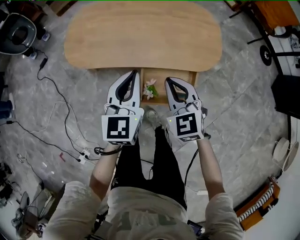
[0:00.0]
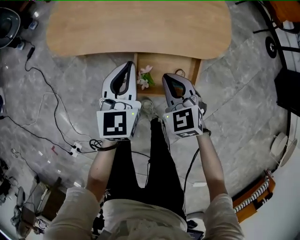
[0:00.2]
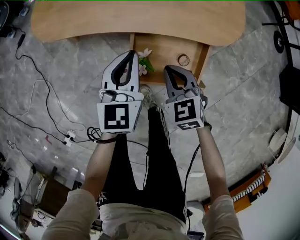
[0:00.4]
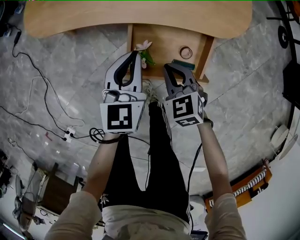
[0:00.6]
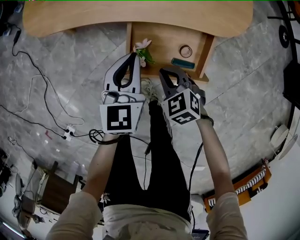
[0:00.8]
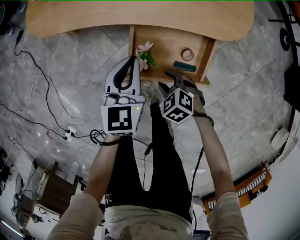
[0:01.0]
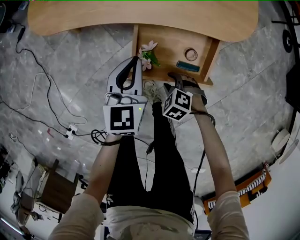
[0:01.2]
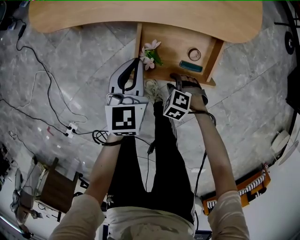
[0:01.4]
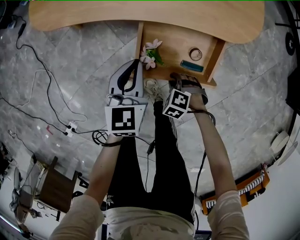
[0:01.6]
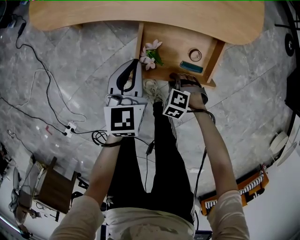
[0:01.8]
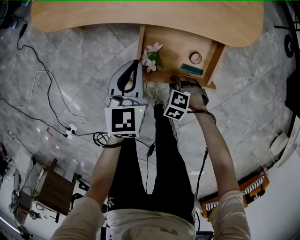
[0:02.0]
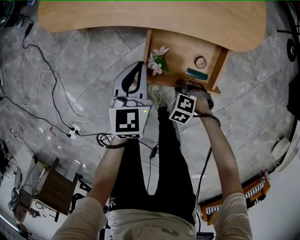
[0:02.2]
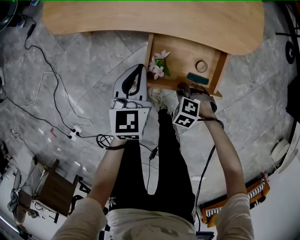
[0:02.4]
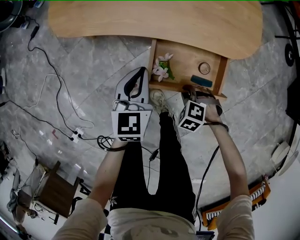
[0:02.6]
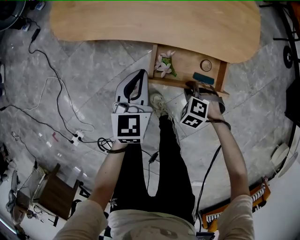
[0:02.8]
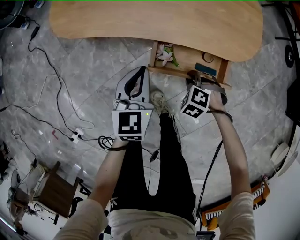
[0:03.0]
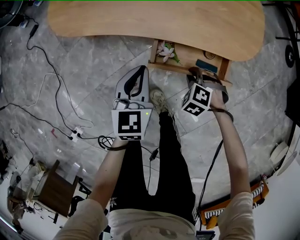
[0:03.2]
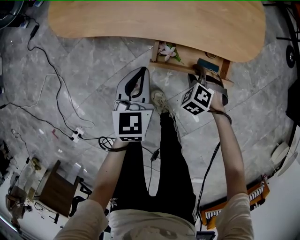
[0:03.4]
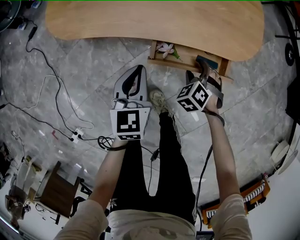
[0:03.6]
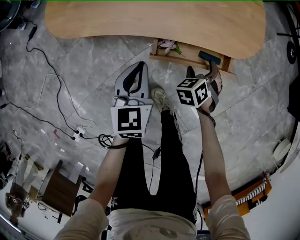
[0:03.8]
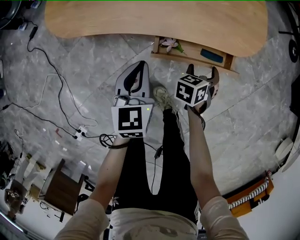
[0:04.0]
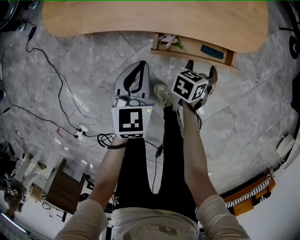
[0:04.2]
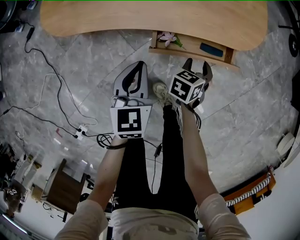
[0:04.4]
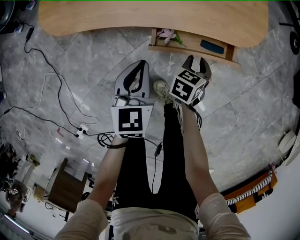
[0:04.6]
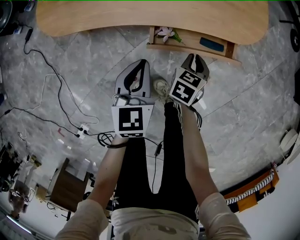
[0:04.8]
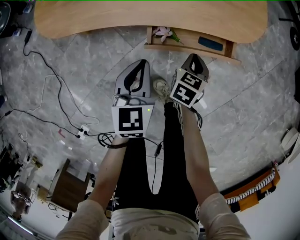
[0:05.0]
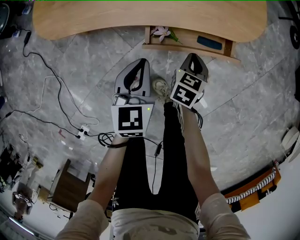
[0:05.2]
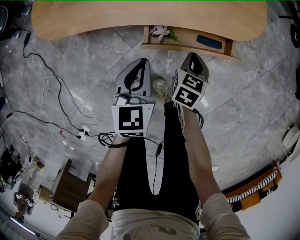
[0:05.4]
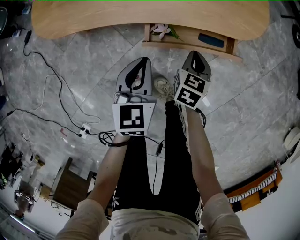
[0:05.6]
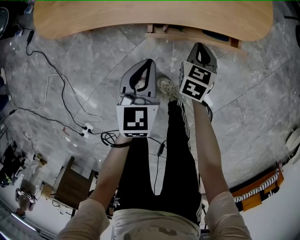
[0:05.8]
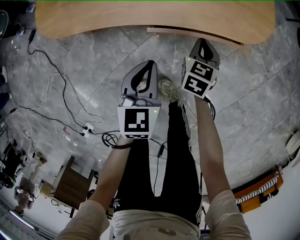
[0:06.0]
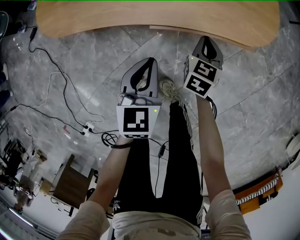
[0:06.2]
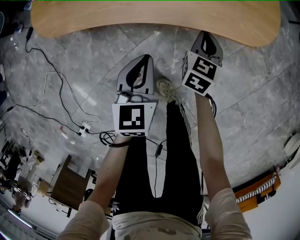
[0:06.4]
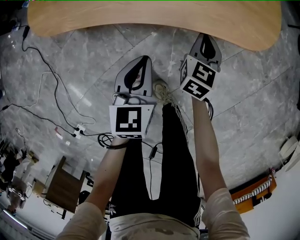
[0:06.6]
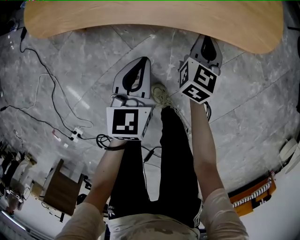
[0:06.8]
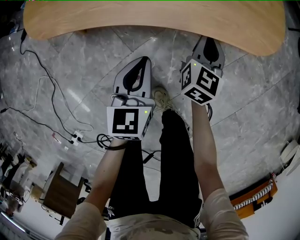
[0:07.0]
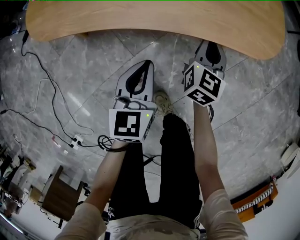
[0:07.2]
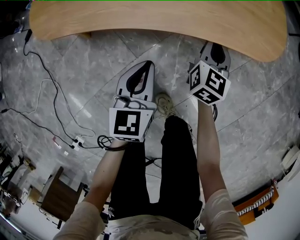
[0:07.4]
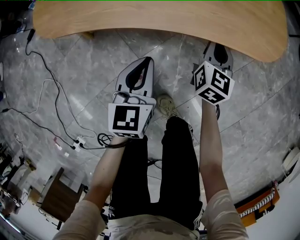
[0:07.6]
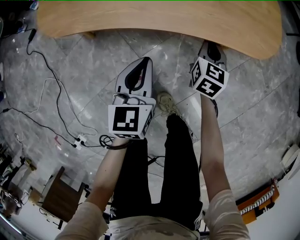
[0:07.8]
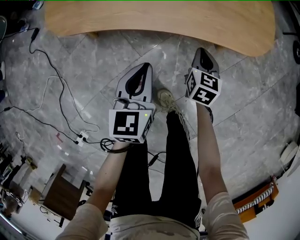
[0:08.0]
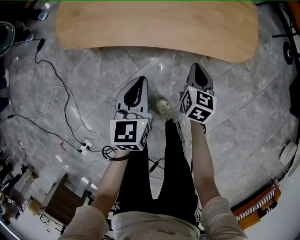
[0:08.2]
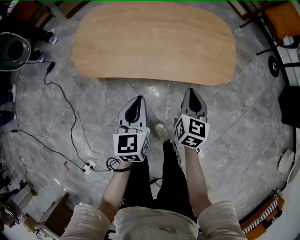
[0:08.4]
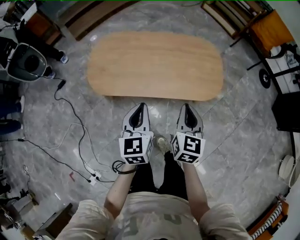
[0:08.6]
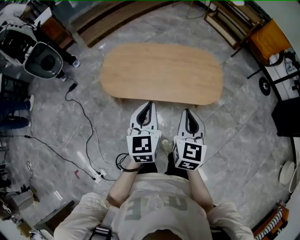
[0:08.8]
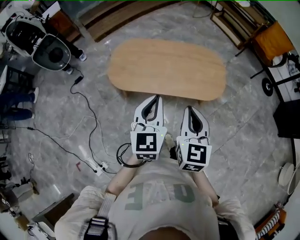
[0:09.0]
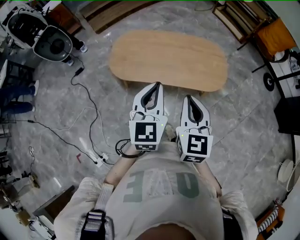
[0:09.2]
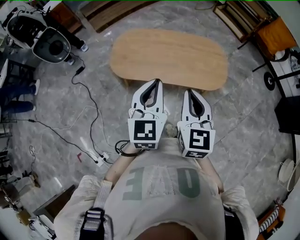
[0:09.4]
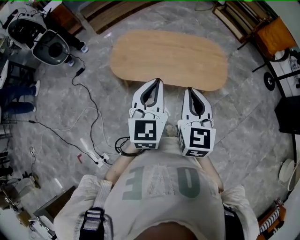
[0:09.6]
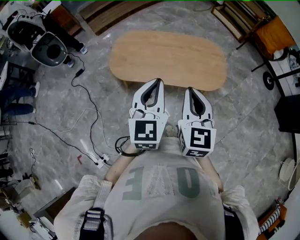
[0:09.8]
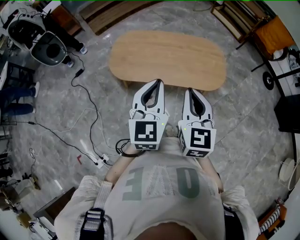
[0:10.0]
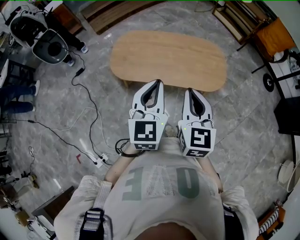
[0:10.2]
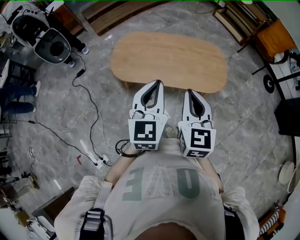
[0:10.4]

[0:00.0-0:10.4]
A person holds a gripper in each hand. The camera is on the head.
0:00.0 to 0:01.4: The left gripper is displaced downward by roughly 25 cm. Meanwhile the right gripper shifts approximately 40 cm downward, tilts its fingers some 50 degrees downward, and opens.
0:01.4 to 0:03.0: The right gripper changes place by approximately 10 cm. Meanwhile the left gripper shifts by some 5 cm.
0:03.0 to 0:04.4: The right gripper moves roughly 5 cm, rotates around the line of its fingers by some 80 degrees, clockwise from behind, and opens its fingers.
0:04.4 to 0:06.0: The right gripper heads forward, covering roughly 5 cm, changes its angle by approximately 20 degrees, and closes.
0:06.0 to 0:07.4: The left gripper moves downward, about 5 cm; the right gripper shifts roughly 5 cm forward, and swivels approximately 20 degrees.
0:07.4 to 0:09.0: Both grippers travel together upward, about 50 cm.
0:09.0 to 0:10.4: There are only small adjustments of the grippers.

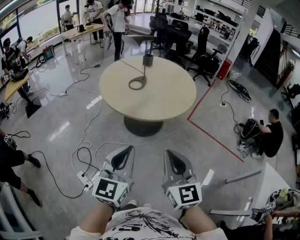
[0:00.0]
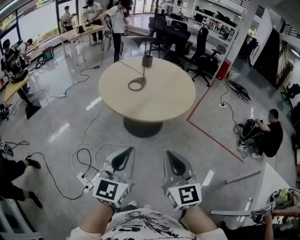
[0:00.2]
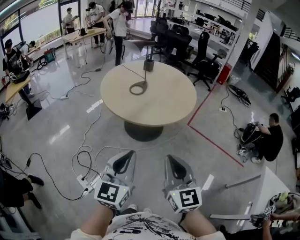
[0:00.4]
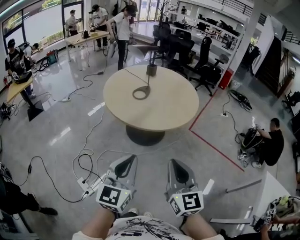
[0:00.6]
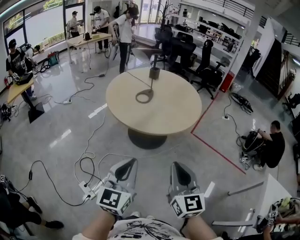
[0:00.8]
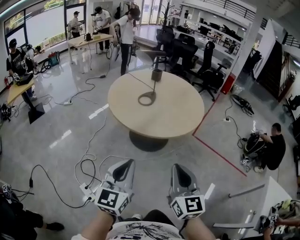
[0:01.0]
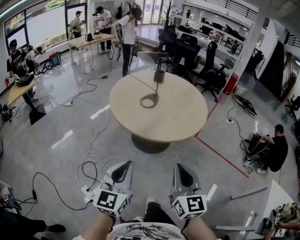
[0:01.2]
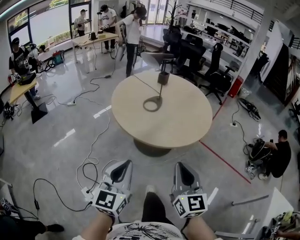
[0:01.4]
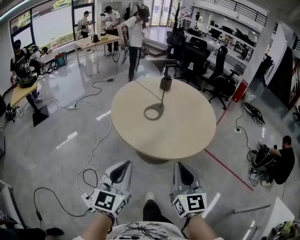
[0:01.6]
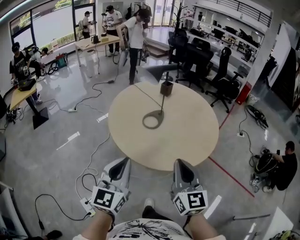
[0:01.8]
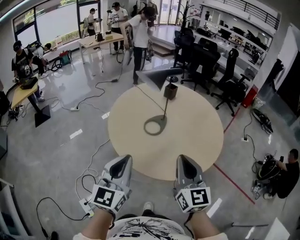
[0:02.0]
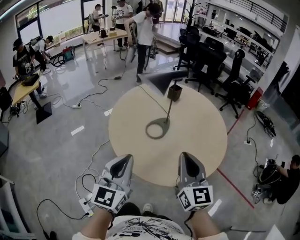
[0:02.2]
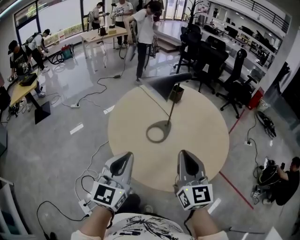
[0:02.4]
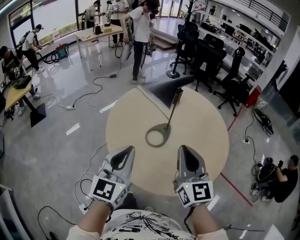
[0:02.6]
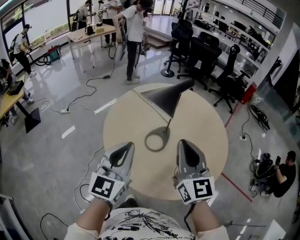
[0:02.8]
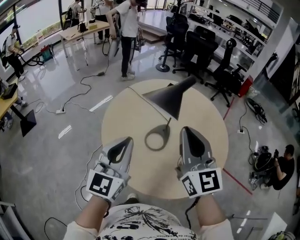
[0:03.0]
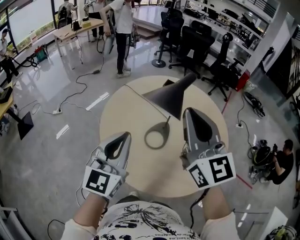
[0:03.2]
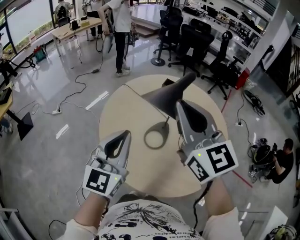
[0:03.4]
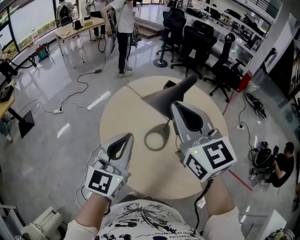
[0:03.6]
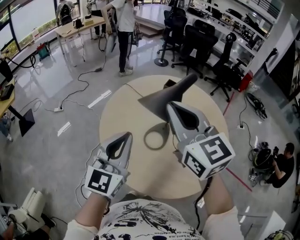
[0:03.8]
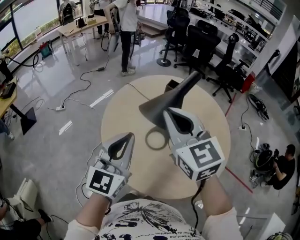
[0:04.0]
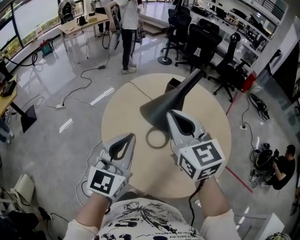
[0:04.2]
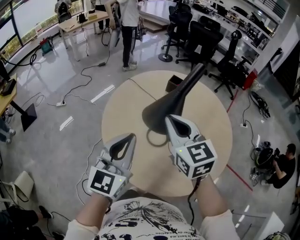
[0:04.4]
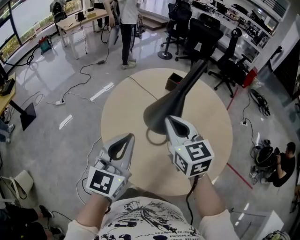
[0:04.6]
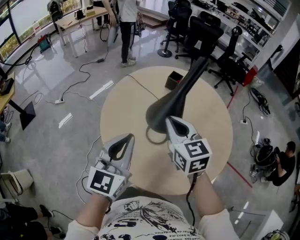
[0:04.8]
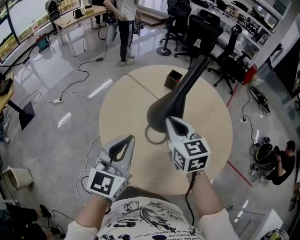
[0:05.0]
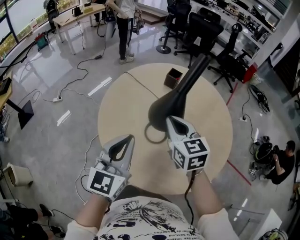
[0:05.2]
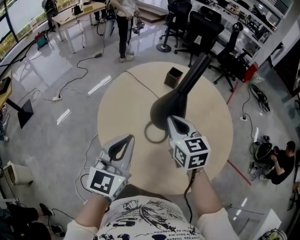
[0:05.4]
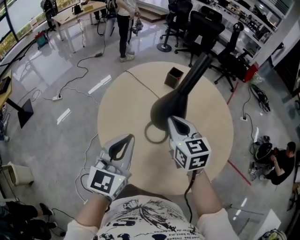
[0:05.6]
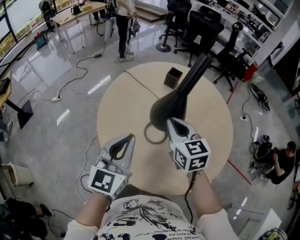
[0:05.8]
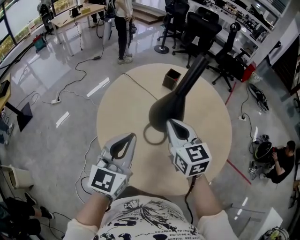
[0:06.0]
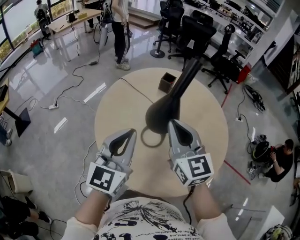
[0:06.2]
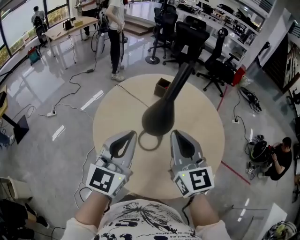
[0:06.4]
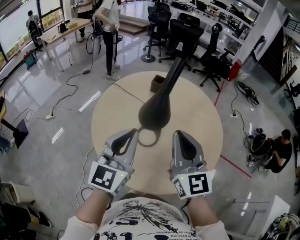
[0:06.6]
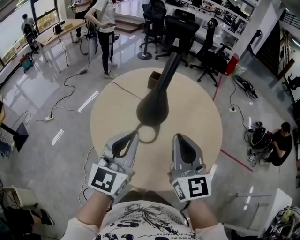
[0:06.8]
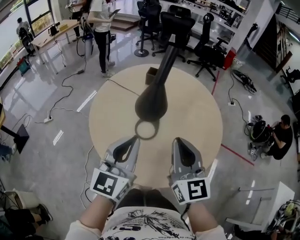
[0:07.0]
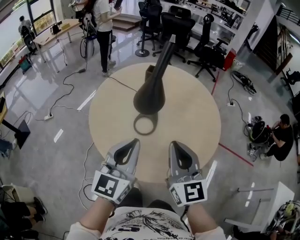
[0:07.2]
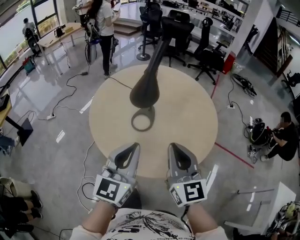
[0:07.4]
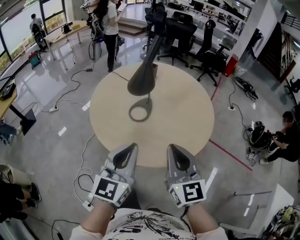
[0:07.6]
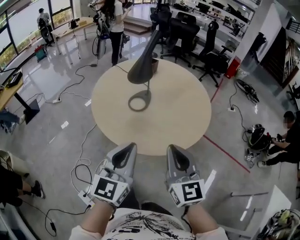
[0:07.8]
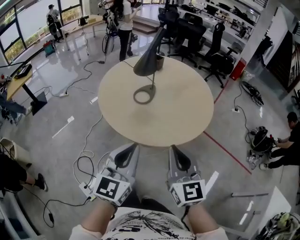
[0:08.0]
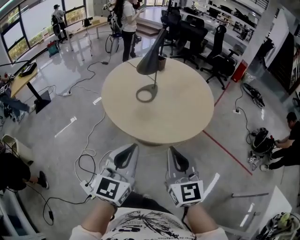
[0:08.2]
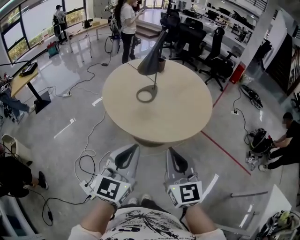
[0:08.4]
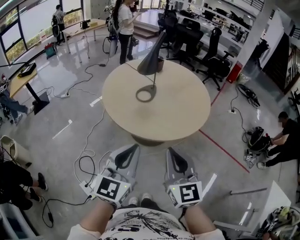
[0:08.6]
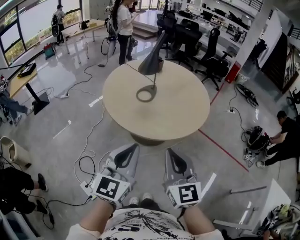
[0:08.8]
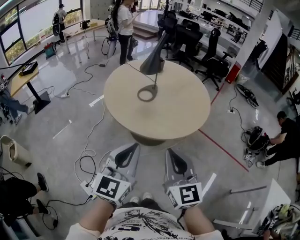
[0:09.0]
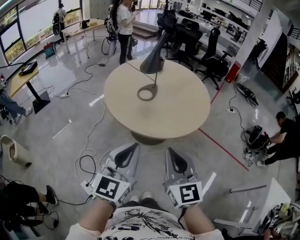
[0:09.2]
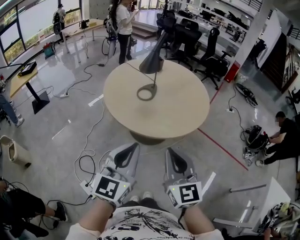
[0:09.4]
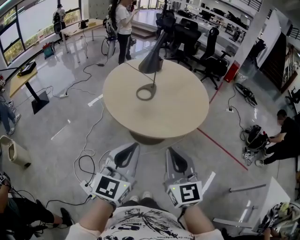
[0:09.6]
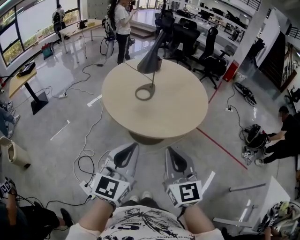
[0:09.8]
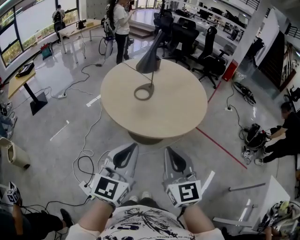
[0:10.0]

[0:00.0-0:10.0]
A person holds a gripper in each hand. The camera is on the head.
0:00.0 to 0:01.4: The right gripper moves forward, roughly 10 cm, while the left gripper heads to the left and forward, covering roughly 15 cm.
0:01.4 to 0:02.8: The grippers both shift forward by approximately 40 cm.
0:02.8 to 0:04.2: The right gripper is displaced forward and to the left by approximately 10 cm, and goes upward and returns, some 10 cm each way.
0:04.2 to 0:05.8: The right gripper goes approximately 15 cm downward.
0:05.8 to 0:07.2: The left gripper moves backward and to the right, about 10 cm. Meanwhile the right gripper is displaced backward by about 15 cm, and swivels approximately 30 degrees.
0:07.2 to 0:08.6: The grippers both shift backward by about 30 cm.
0:08.6 to 0:10.0: There are only small adjustments of the grippers.

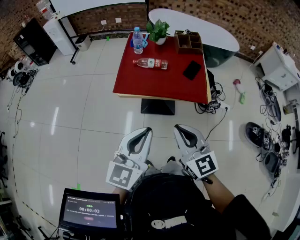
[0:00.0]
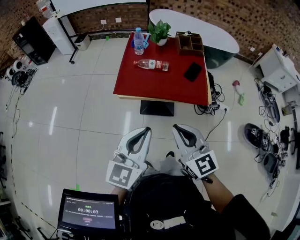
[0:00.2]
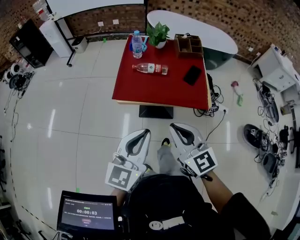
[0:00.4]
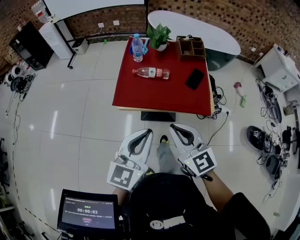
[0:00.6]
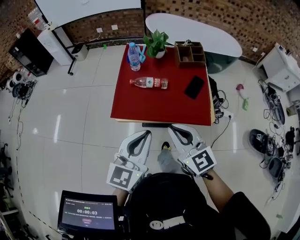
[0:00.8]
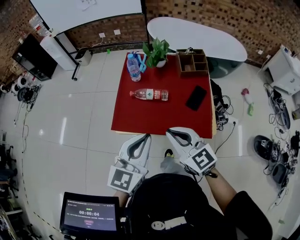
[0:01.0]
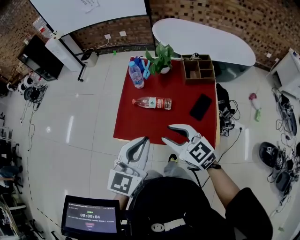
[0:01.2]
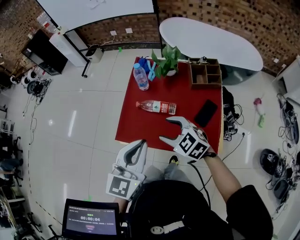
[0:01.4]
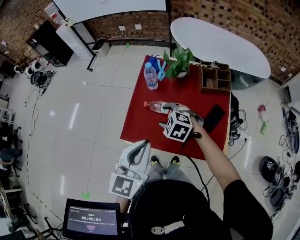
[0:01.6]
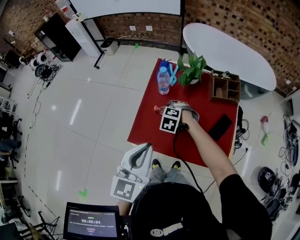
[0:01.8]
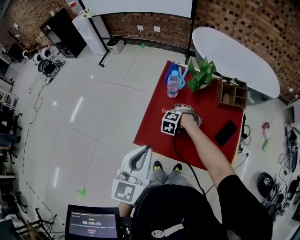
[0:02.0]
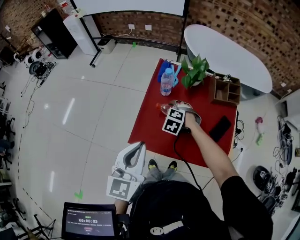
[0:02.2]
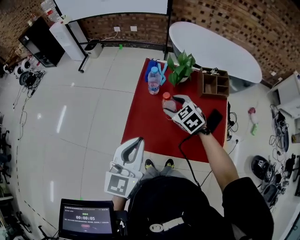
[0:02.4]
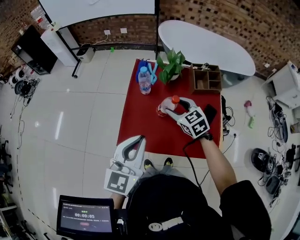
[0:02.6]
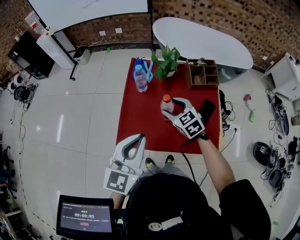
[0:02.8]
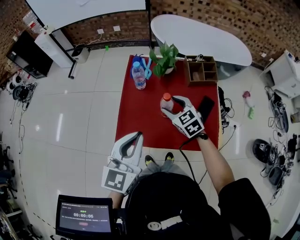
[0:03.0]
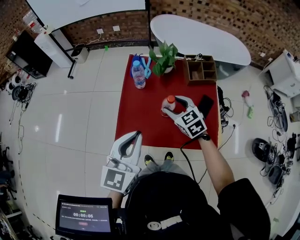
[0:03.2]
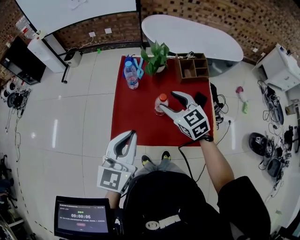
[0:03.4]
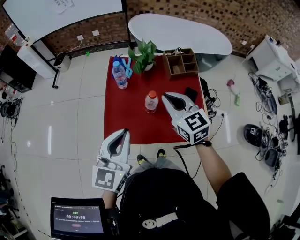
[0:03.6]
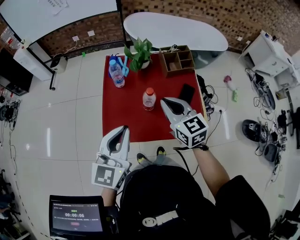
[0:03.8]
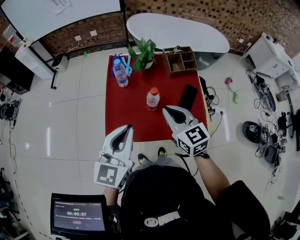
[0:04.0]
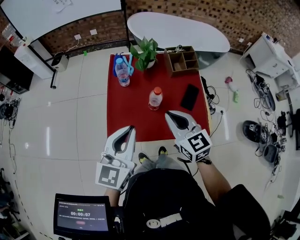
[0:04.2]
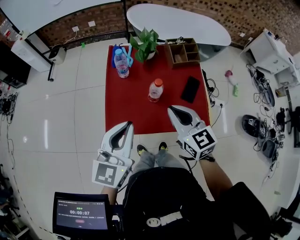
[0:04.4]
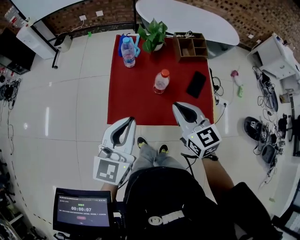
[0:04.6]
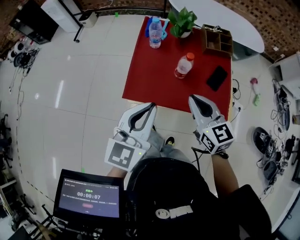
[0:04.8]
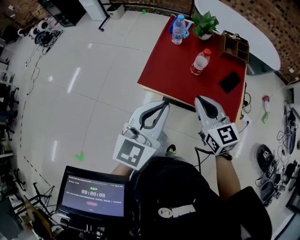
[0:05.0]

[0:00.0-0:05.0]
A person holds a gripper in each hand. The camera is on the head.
0:00.0 to 0:01.6: The grippers both shift forward by roughly 35 cm. The right gripper tips its fingers downward by roughly 50 degrees, and opens its fingers.
0:01.6 to 0:03.4: The right gripper goes roughly 10 cm upward and to the right, and turns by approximately 50 degrees.
0:03.4 to 0:05.0: Both grippers travel together backward, about 20 cm. The right gripper closes.
